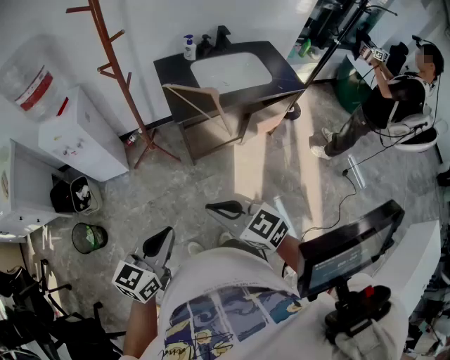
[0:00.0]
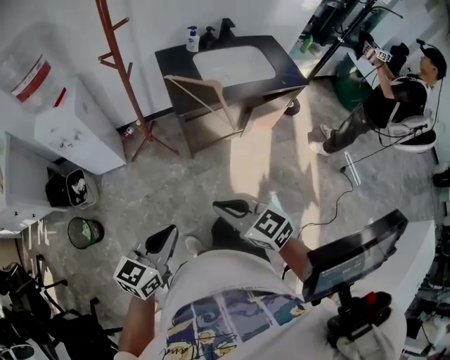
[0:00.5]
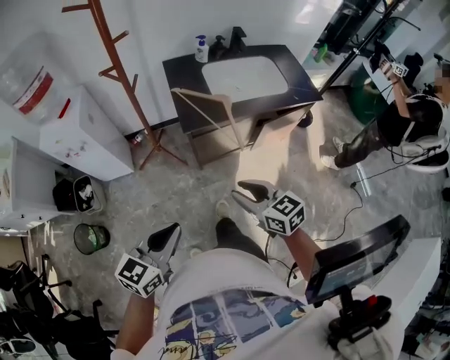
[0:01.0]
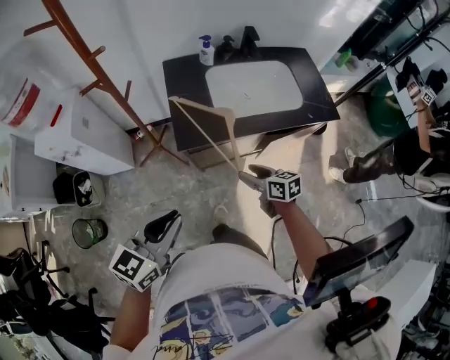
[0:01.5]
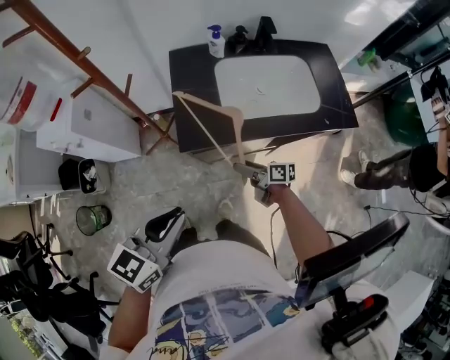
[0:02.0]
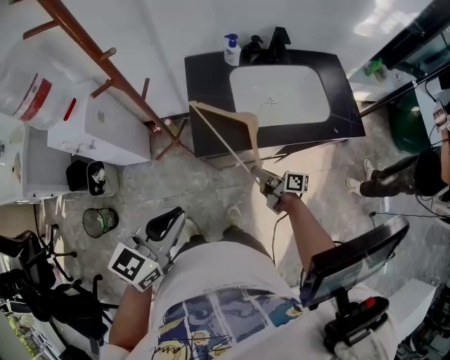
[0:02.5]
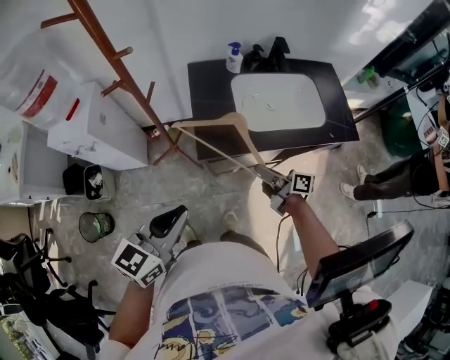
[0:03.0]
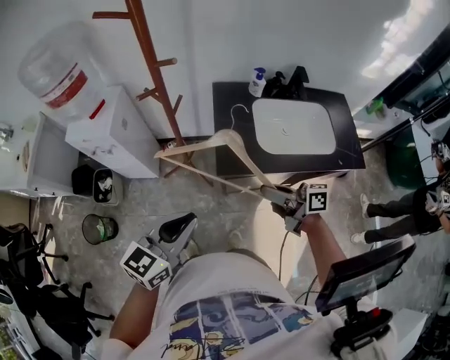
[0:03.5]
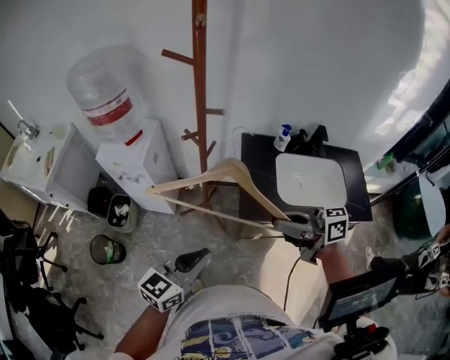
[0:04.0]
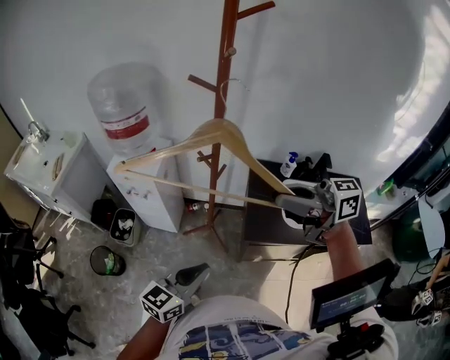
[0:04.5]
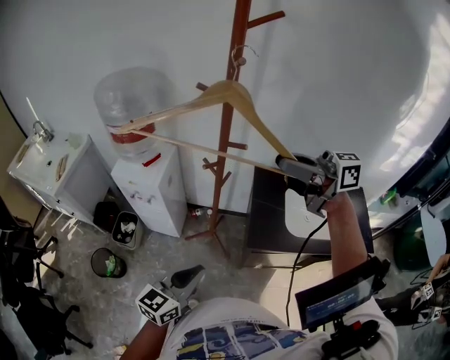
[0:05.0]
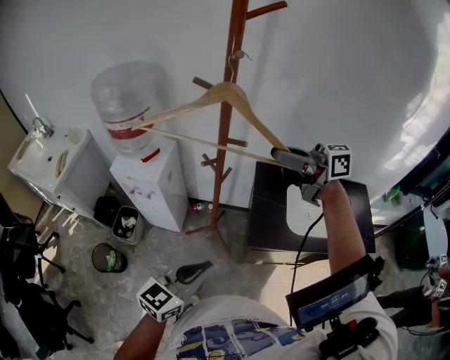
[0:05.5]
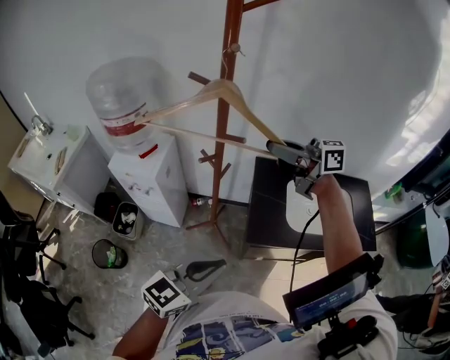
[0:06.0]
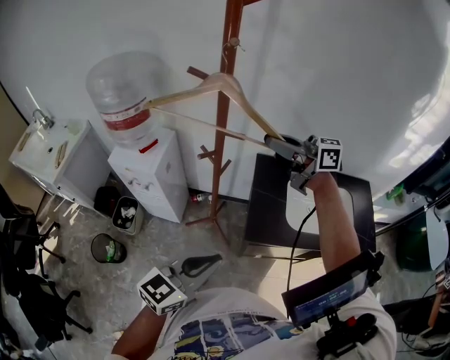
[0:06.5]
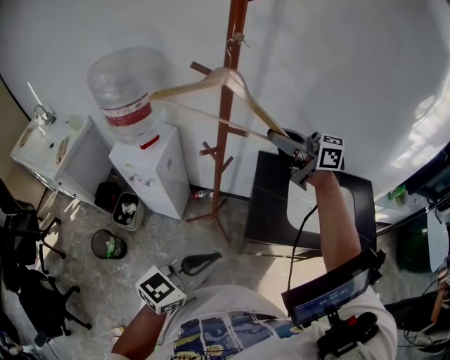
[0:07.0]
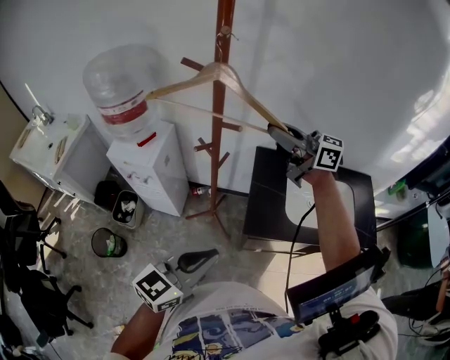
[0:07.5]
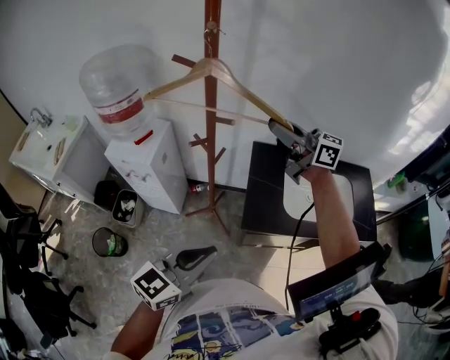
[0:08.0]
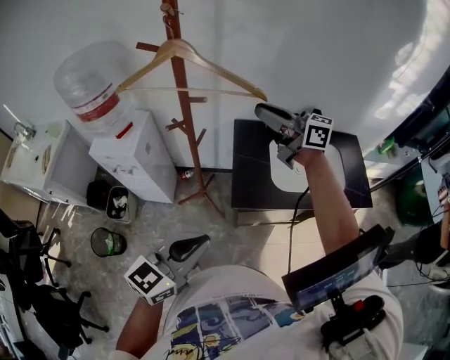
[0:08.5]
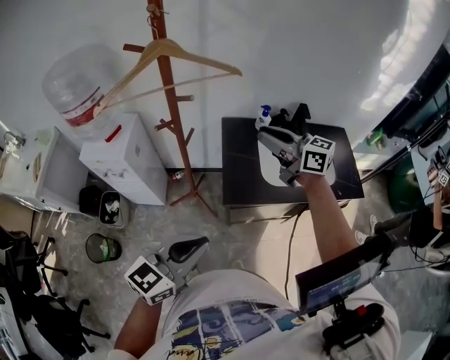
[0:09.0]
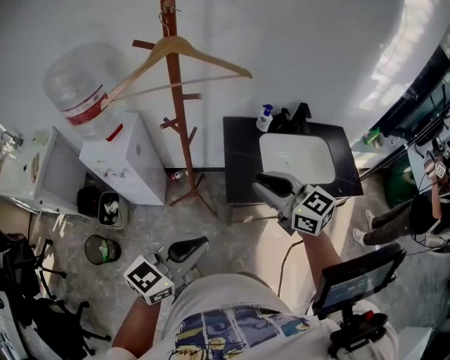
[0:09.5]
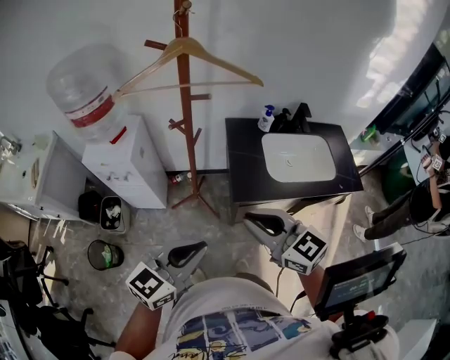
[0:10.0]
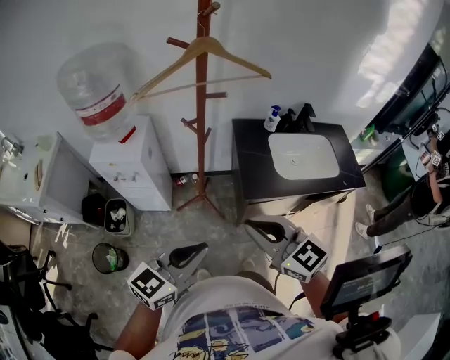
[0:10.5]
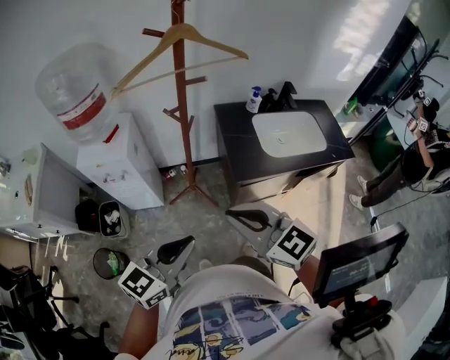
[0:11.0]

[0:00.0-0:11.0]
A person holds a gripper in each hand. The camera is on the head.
0:00.0 to 0:02.0: The right gripper travels forward, downward and to the right by approximately 50 cm, twists roughly 60 degrees clockwise, seen from behind, and opens. Meanwhile the left gripper is displaced forward and to the right by approximately 30 cm.
0:02.0 to 0:03.5: The right gripper shifts approximately 20 cm upward, swivels about 20 degrees, and closes its fingers. The left gripper travels to the left by roughly 10 cm.
0:03.5 to 0:05.5: The left gripper heads to the left, covering some 5 cm. Meanwhile the right gripper shifts approximately 40 cm upward and forward, and rotates about 40 degrees.
0:05.5 to 0:07.5: The right gripper ends up approximately 5 cm from where it was; the left gripper moves approximately 5 cm.
0:07.5 to 0:09.0: The left gripper moves some 5 cm, while the right gripper is displaced backward, to the right and downward by some 15 cm, and turns by approximately 20 degrees.
0:09.0 to 0:11.0: The right gripper moves backward and to the left, about 35 cm, and changes its angle by approximately 30 degrees; the left gripper travels to the left by about 15 cm.

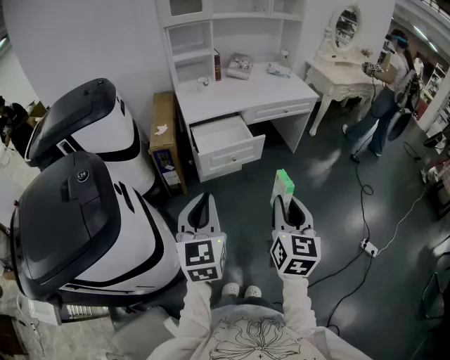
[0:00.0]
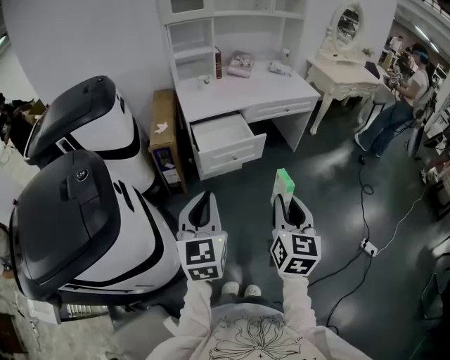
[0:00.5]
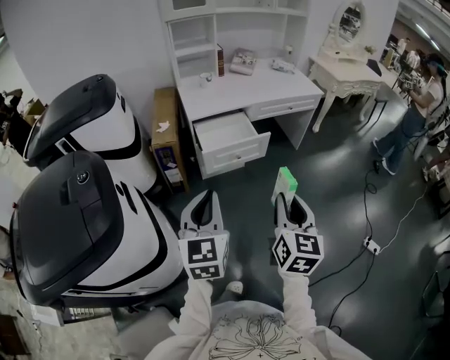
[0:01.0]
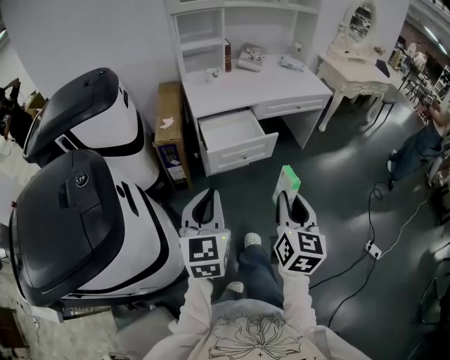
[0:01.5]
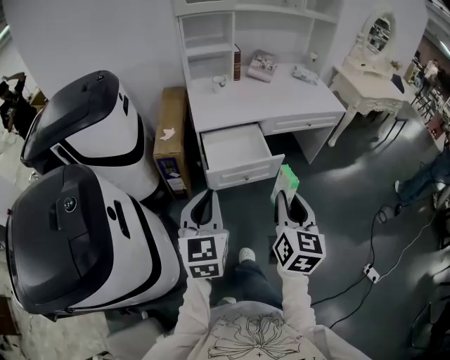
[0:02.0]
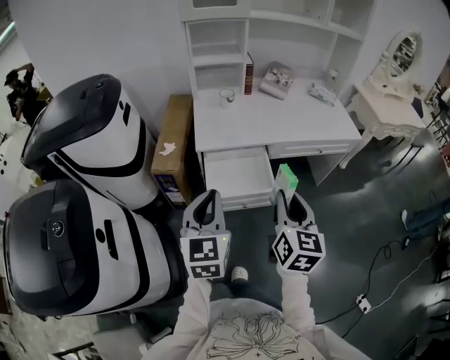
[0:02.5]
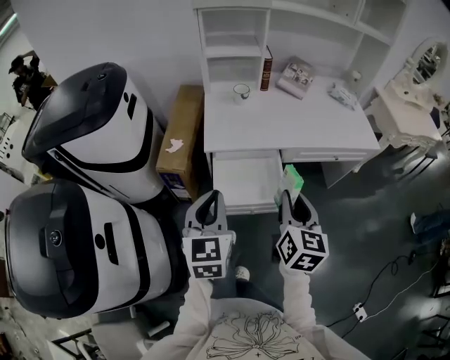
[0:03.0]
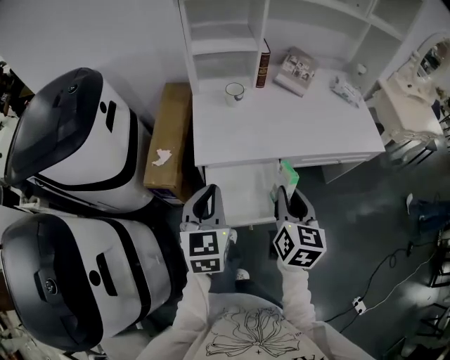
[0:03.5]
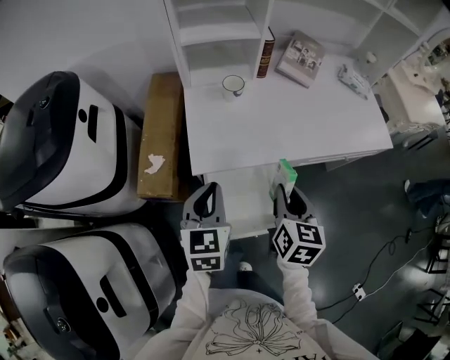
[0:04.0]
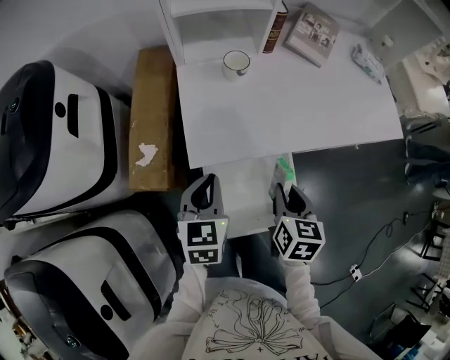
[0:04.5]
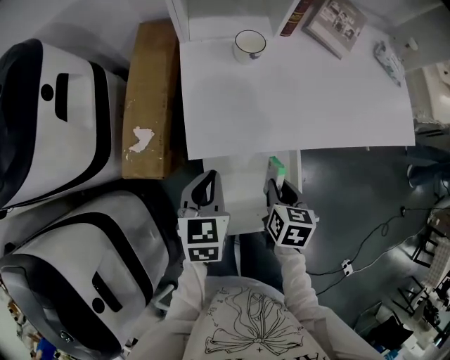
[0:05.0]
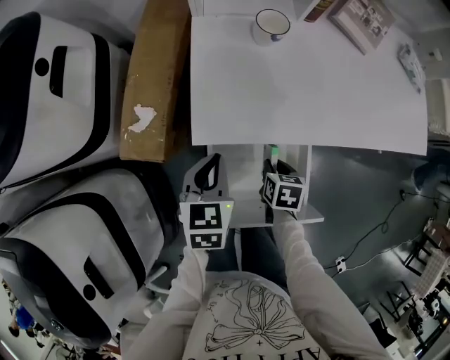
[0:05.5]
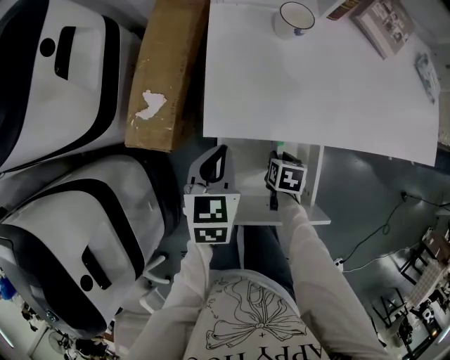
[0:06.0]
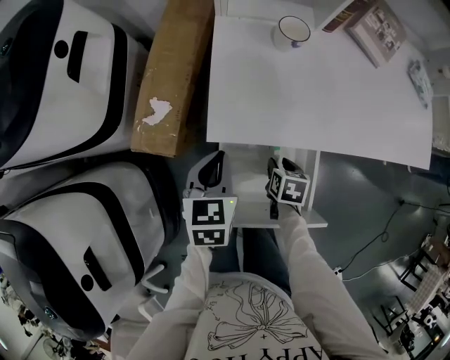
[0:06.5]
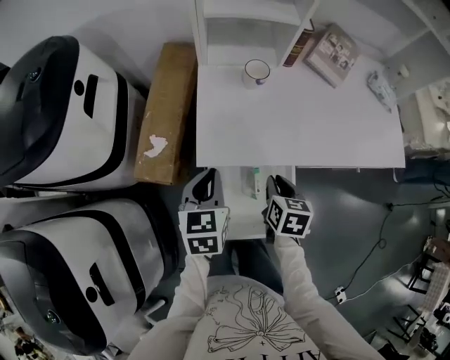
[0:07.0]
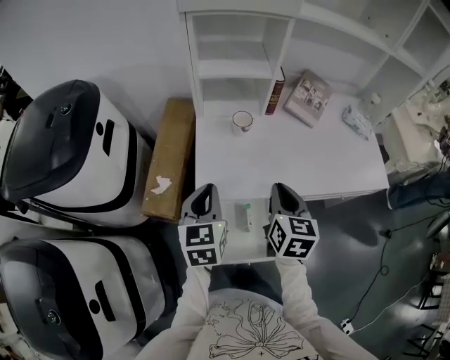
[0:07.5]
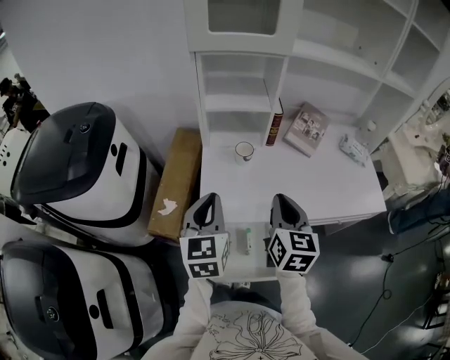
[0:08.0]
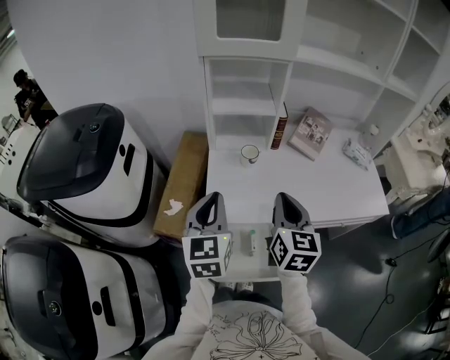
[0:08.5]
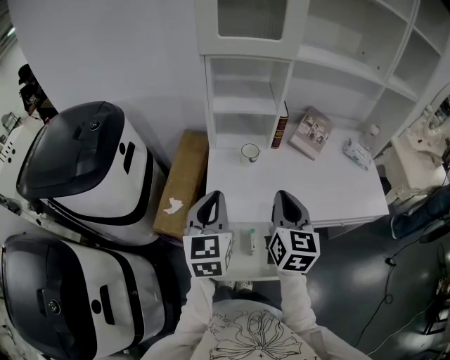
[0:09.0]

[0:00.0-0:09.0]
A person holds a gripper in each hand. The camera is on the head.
0:00.0 to 0:02.0: Both grippers travel together forward, about 20 cm.
0:02.0 to 0:04.5: The two grippers travel together, forward, approximately 50 cm. Both grippers move downward, some 20 cm. The right gripper turns by approximately 30 degrees. The left gripper swivels some 20 degrees.
0:04.5 to 0:07.0: The left gripper goes downward and returns, roughly 10 cm each way; the right gripper moves roughly 25 cm downward and comes back.
0:07.0 to 0:09.0: The two grippers go roughly 25 cm upward. The left gripper rotates approximately 20 degrees; the right gripper points its fingers some 40 degrees further upward.

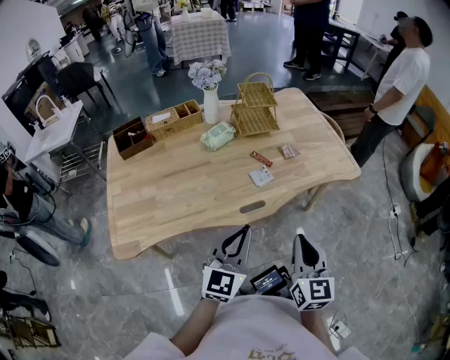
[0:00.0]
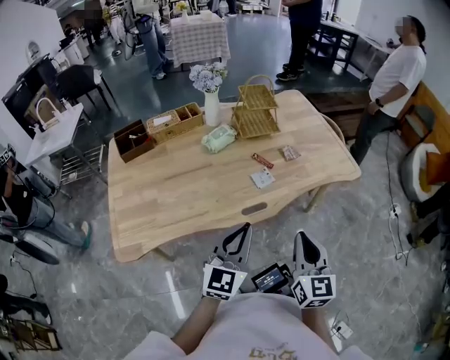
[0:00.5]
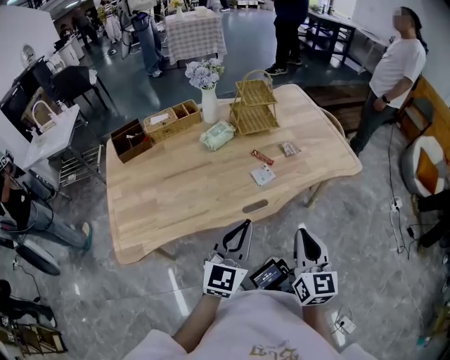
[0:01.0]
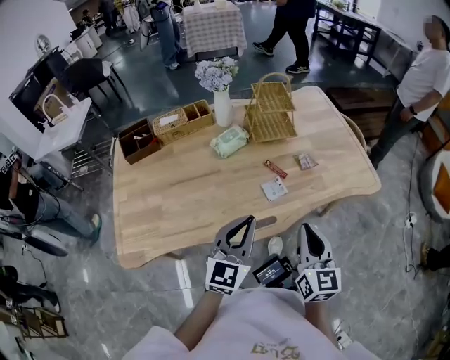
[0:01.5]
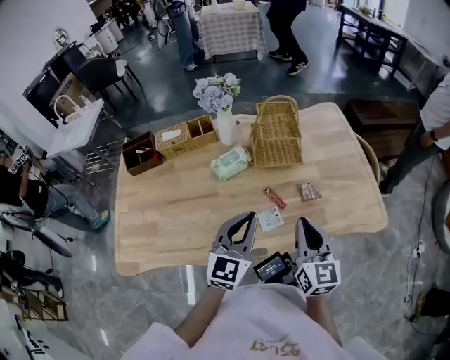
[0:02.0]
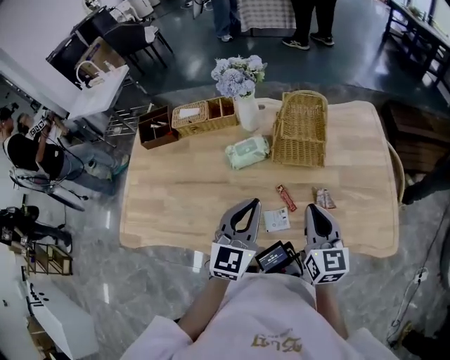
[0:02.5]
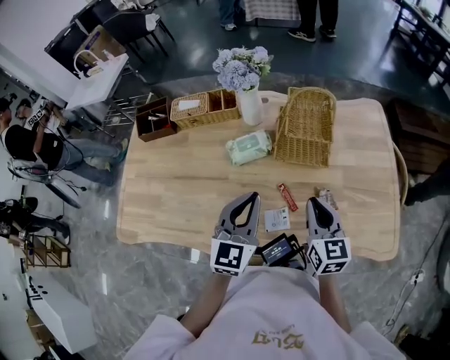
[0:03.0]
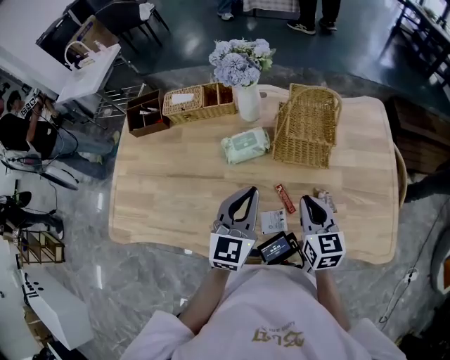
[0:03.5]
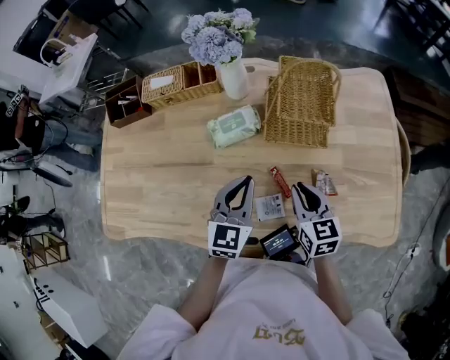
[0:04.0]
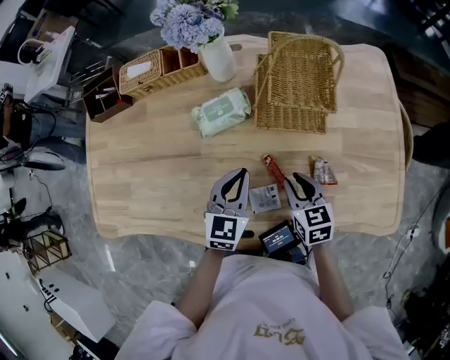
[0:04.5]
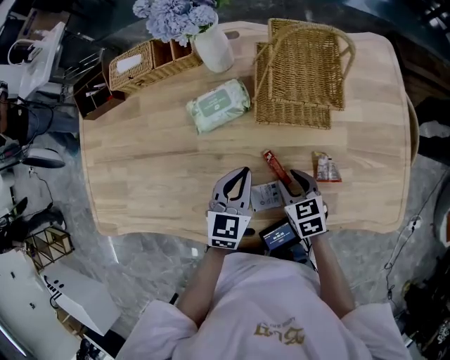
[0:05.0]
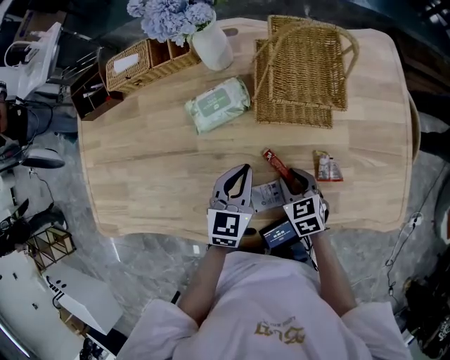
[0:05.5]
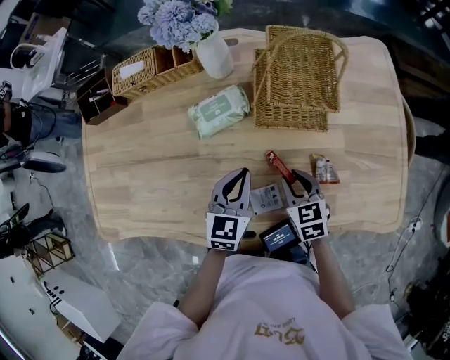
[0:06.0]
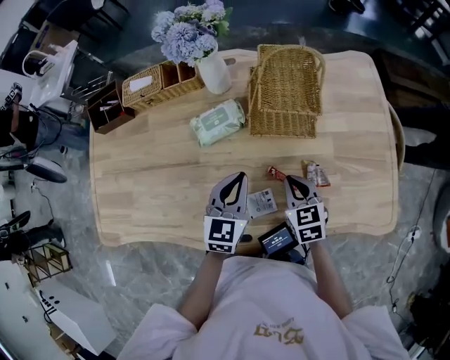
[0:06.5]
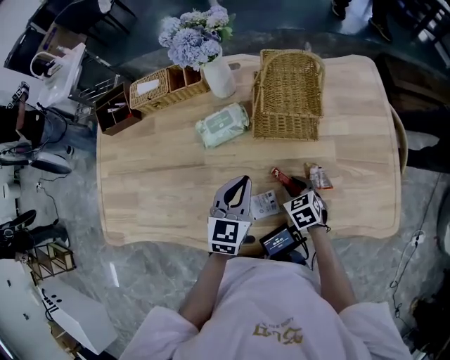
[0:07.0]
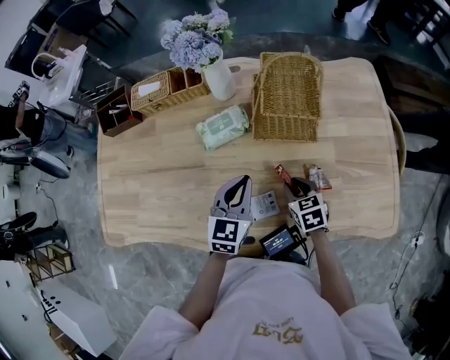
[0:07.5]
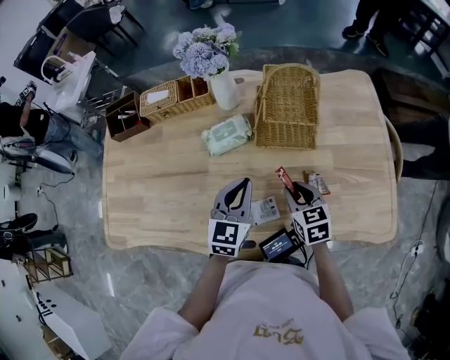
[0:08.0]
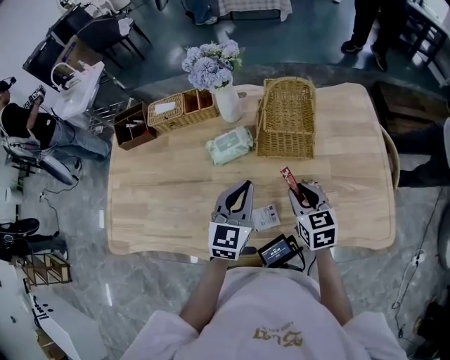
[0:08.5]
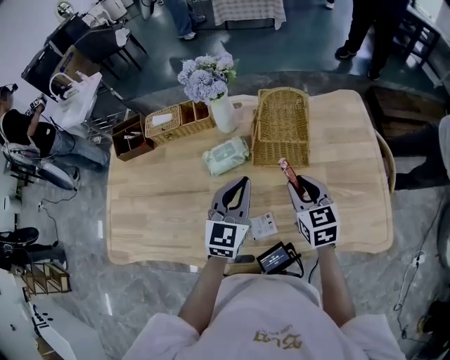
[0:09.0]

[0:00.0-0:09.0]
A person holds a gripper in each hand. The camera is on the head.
0:00.0 to 0:02.0: The two grippers go some 30 cm forward.
0:02.0 to 0:04.5: Both grippers travel together downward and forward, approximately 25 cm. The right gripper points its fingers roughly 30 degrees further downward. The left gripper turns by approximately 20 degrees.
0:04.5 to 0:07.0: The right gripper moves up and down over some 10 cm, changing direction 2 times, and rotates approximately 20 degrees.
0:07.0 to 0:09.0: The left gripper heads upward, covering approximately 10 cm. Meanwhile the right gripper travels upward by roughly 20 cm, and rotates about 30 degrees.
